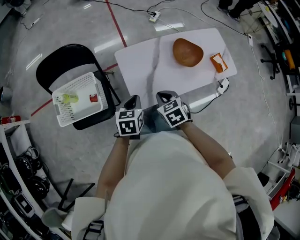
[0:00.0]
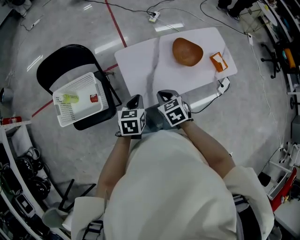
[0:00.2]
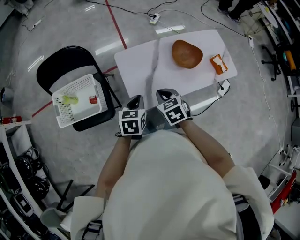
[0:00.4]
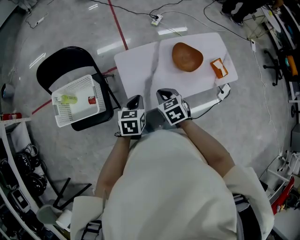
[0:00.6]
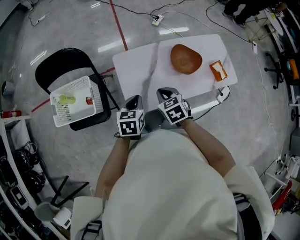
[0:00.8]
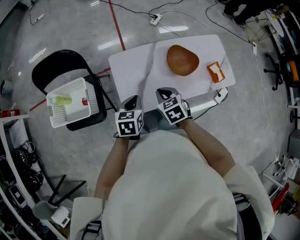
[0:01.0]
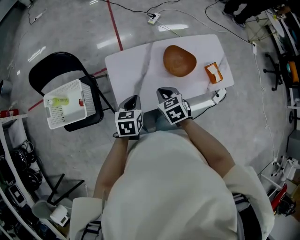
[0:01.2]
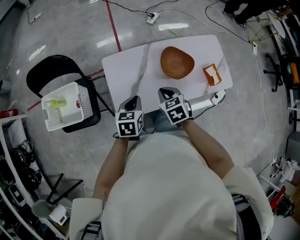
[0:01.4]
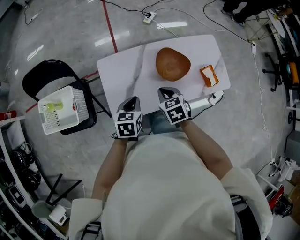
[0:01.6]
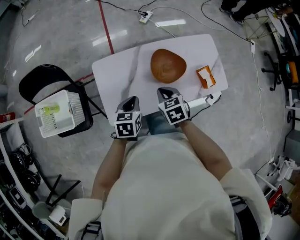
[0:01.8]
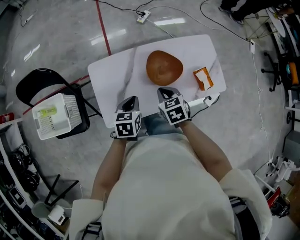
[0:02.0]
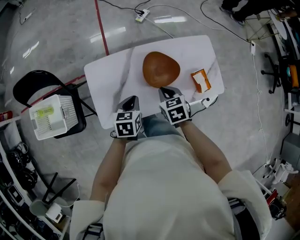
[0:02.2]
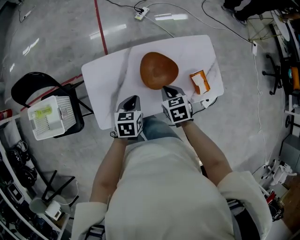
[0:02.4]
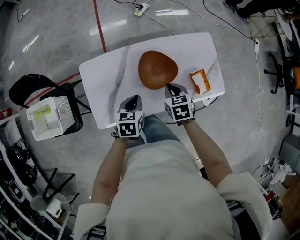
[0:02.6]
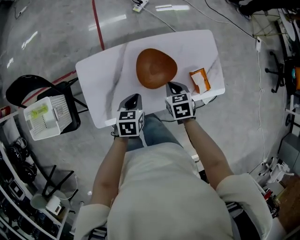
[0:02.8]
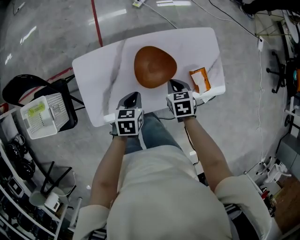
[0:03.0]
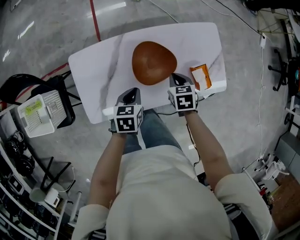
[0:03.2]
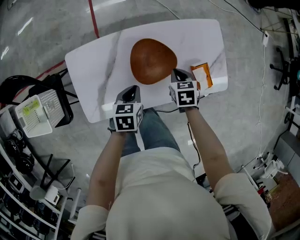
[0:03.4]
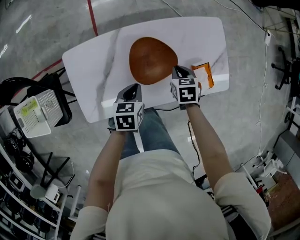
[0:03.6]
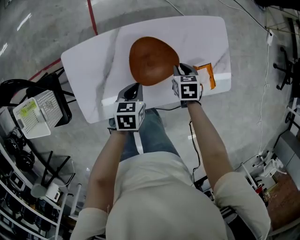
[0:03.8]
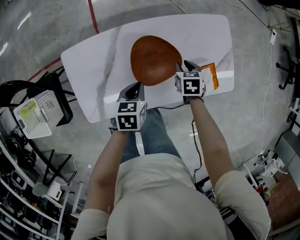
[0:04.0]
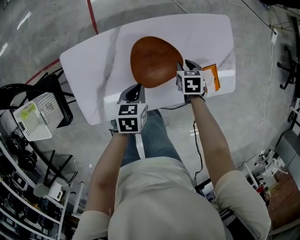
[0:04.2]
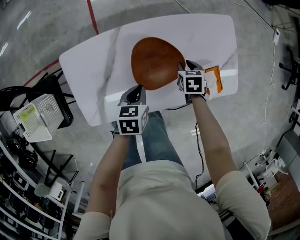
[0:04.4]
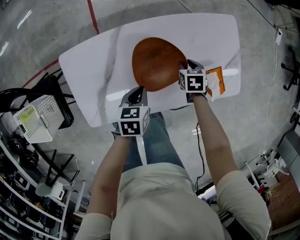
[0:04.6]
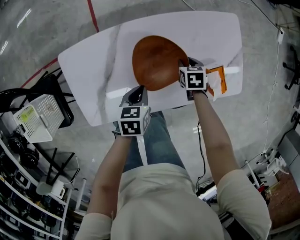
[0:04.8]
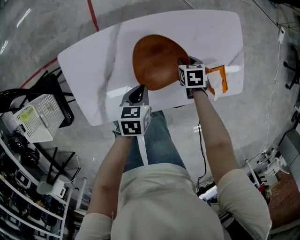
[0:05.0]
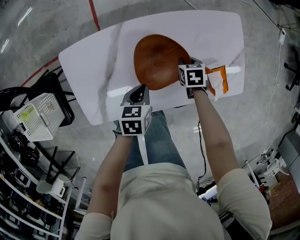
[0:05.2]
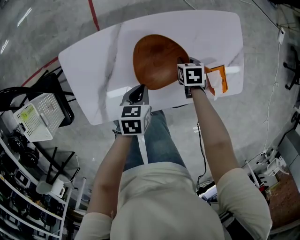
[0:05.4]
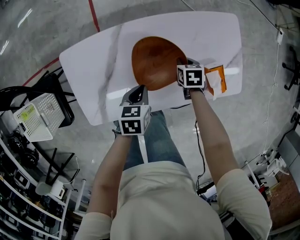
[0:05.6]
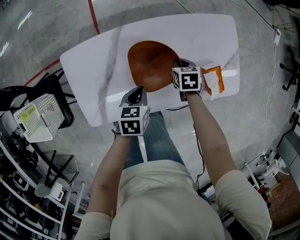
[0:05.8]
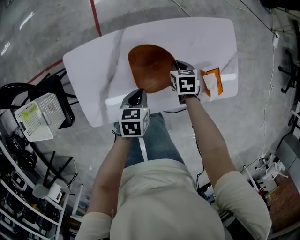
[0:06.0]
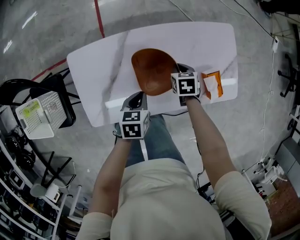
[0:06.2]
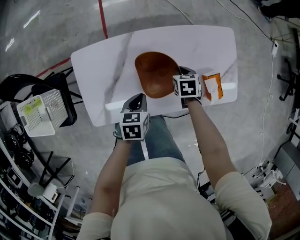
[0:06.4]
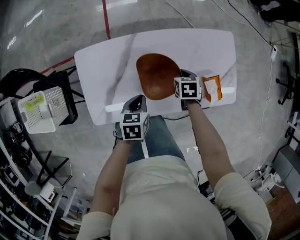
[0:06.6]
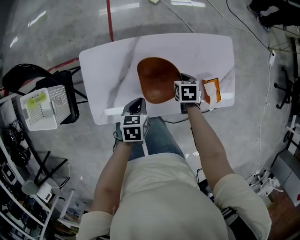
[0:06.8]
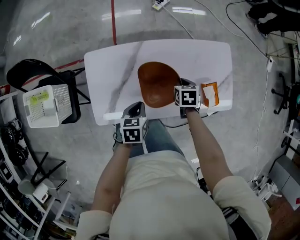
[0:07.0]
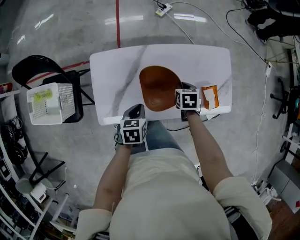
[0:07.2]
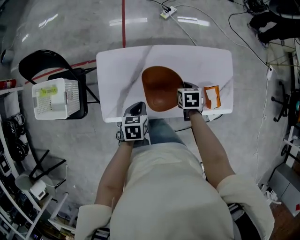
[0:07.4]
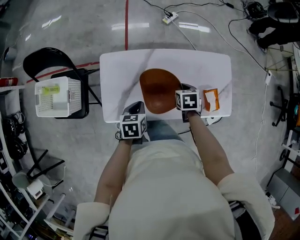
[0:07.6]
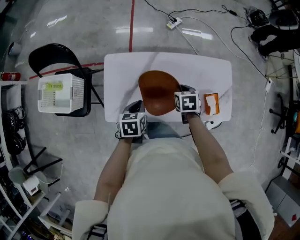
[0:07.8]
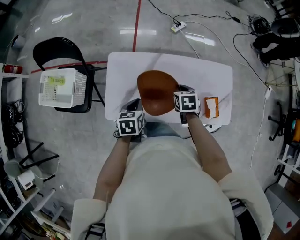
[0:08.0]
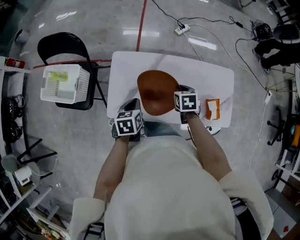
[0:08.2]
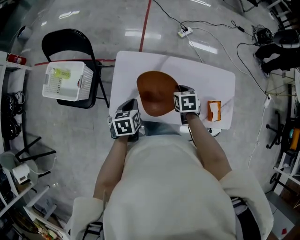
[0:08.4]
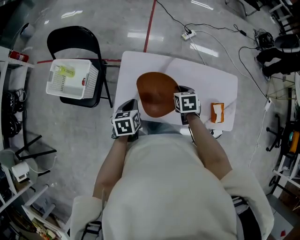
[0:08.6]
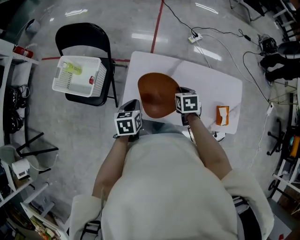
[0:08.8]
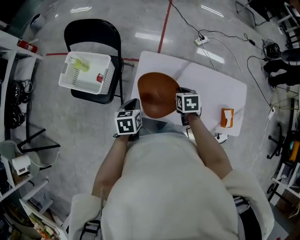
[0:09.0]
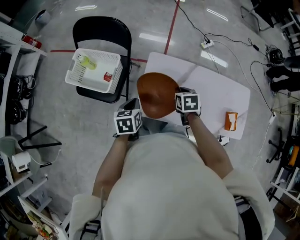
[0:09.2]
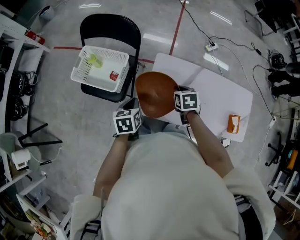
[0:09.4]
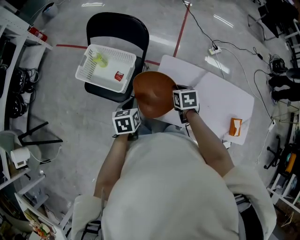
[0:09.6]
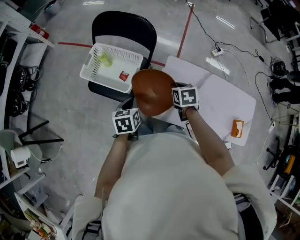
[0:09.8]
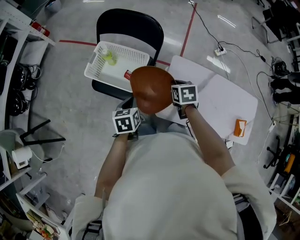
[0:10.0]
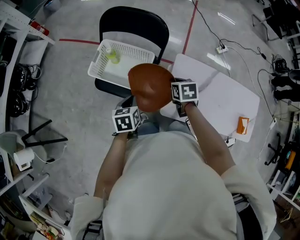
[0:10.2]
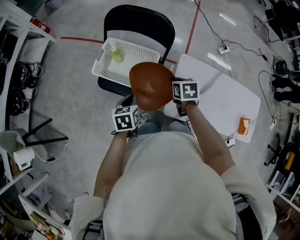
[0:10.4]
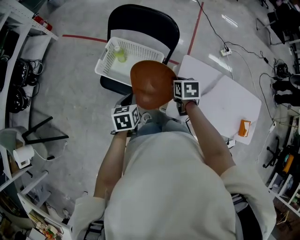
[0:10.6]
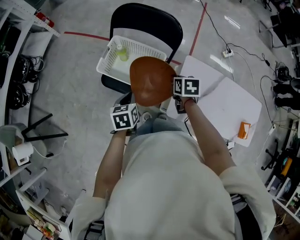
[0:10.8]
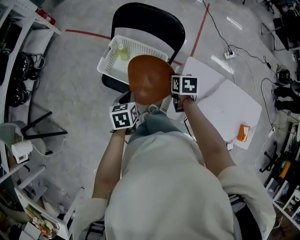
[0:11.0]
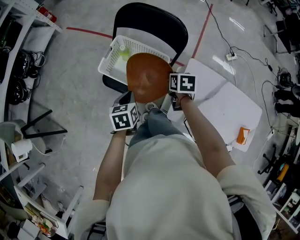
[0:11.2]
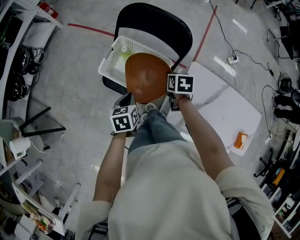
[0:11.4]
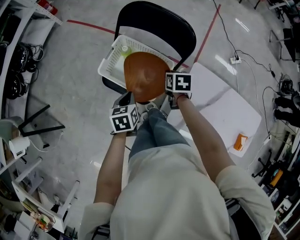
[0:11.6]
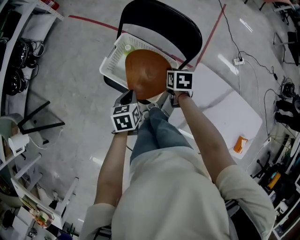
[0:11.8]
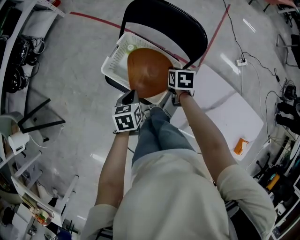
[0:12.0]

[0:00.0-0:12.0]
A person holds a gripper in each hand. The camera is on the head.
0:00.0 to 0:01.6: Both grippers travel together to the right and forward, about 20 cm.
0:01.6 to 0:03.0: Both grippers move to the right, forward and downward, roughly 20 cm.
0:03.0 to 0:04.4: The left gripper moves downward, approximately 10 cm, while the right gripper heads downward and forward, covering approximately 15 cm.
0:04.4 to 0:06.0: The right gripper heads to the left, covering approximately 5 cm.
0:06.0 to 0:07.6: The right gripper shifts some 20 cm upward, backward and to the left. The left gripper goes about 15 cm upward, to the left and backward.
0:07.6 to 0:09.0: Both grippers move to the left, approximately 20 cm.
0:09.0 to 0:10.4: Both grippers travel together to the left, approximately 30 cm.
0:10.4 to 0:12.0: The right gripper moves forward, to the left and downward, some 20 cm; the left gripper heads forward and to the left, covering roughly 10 cm.

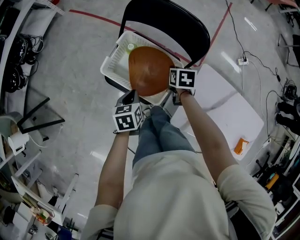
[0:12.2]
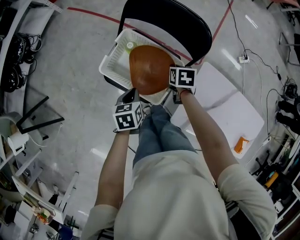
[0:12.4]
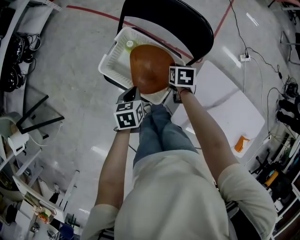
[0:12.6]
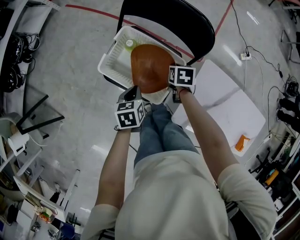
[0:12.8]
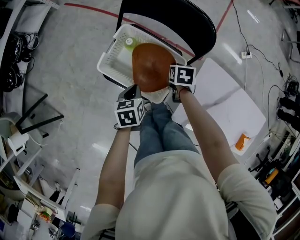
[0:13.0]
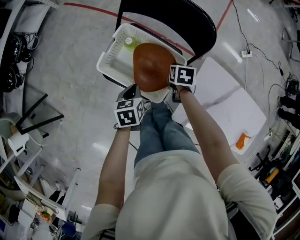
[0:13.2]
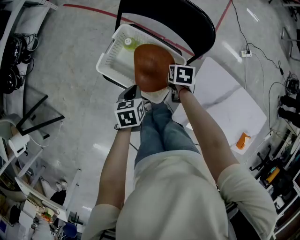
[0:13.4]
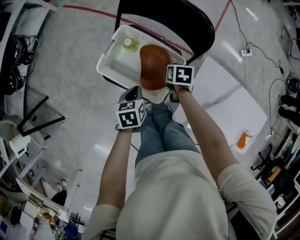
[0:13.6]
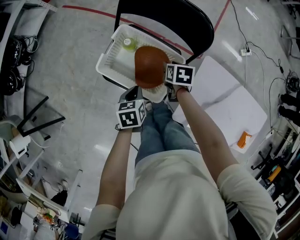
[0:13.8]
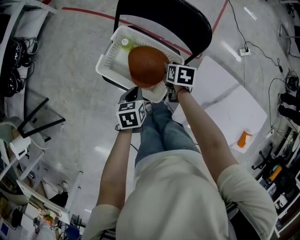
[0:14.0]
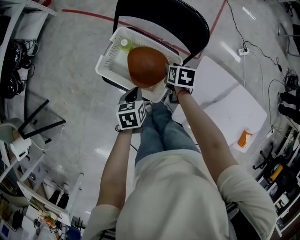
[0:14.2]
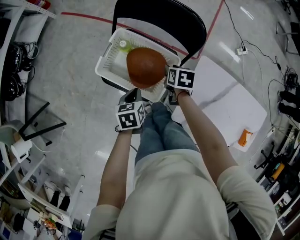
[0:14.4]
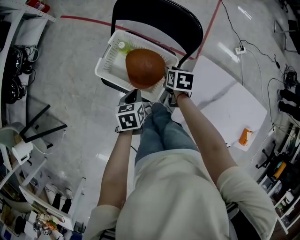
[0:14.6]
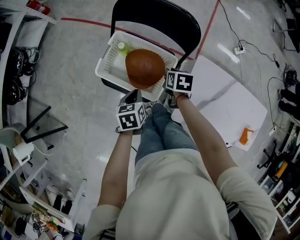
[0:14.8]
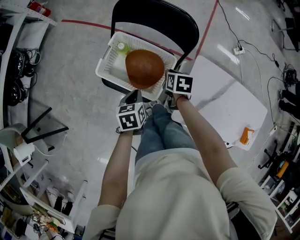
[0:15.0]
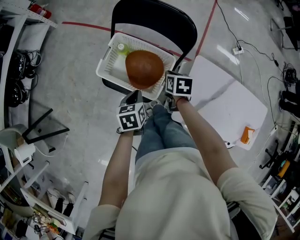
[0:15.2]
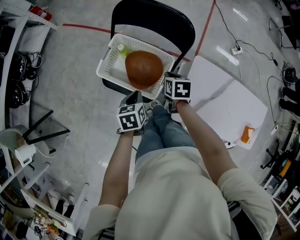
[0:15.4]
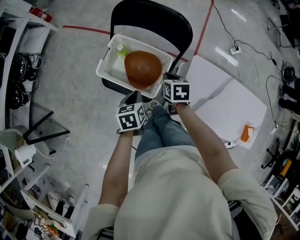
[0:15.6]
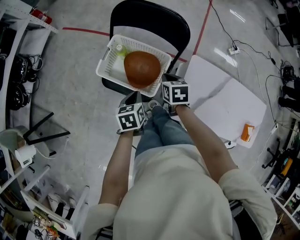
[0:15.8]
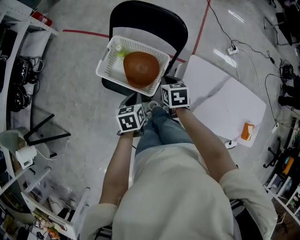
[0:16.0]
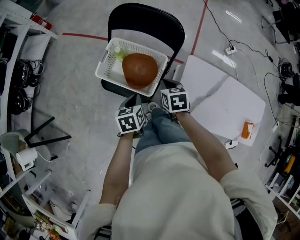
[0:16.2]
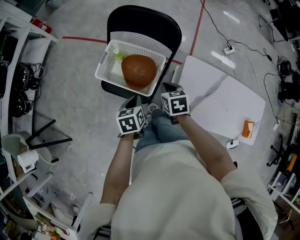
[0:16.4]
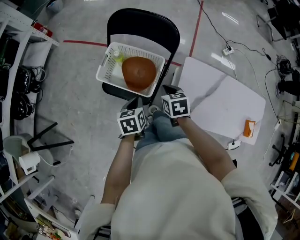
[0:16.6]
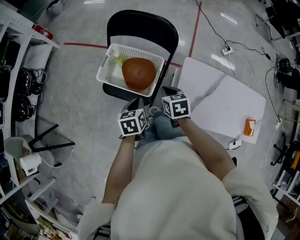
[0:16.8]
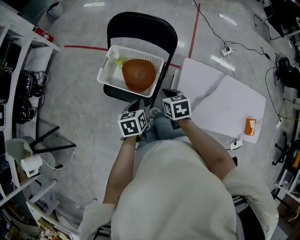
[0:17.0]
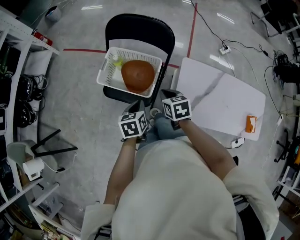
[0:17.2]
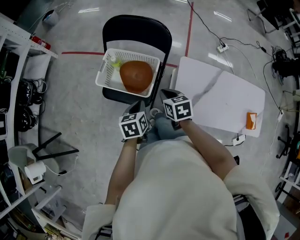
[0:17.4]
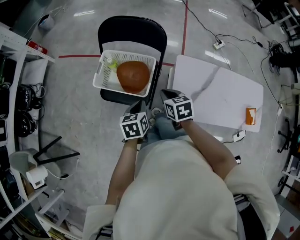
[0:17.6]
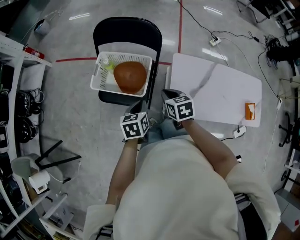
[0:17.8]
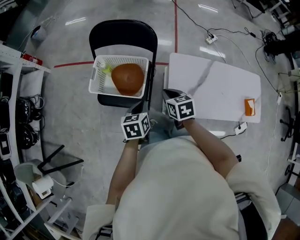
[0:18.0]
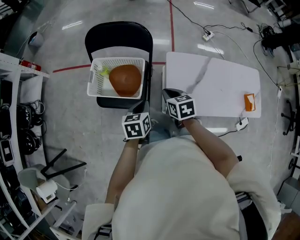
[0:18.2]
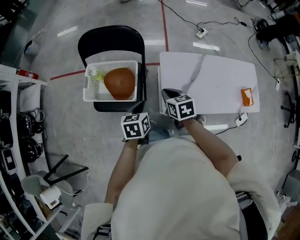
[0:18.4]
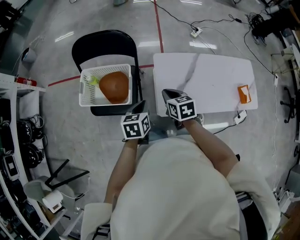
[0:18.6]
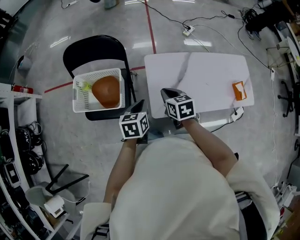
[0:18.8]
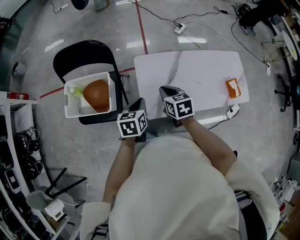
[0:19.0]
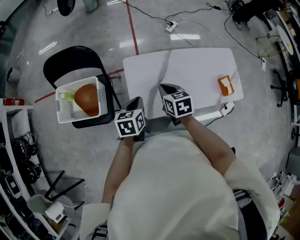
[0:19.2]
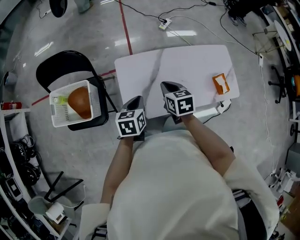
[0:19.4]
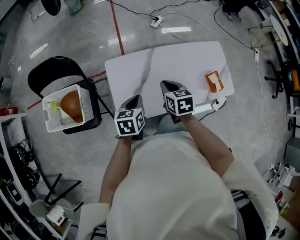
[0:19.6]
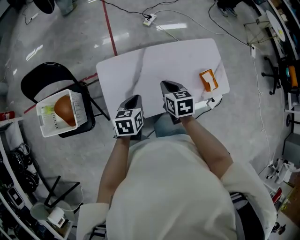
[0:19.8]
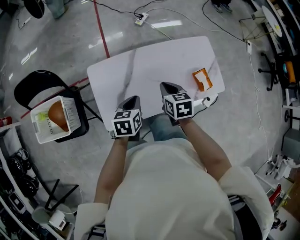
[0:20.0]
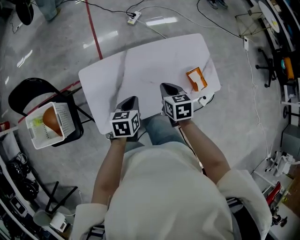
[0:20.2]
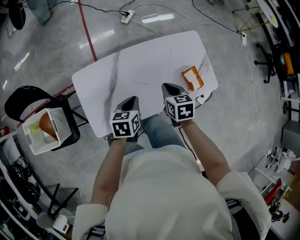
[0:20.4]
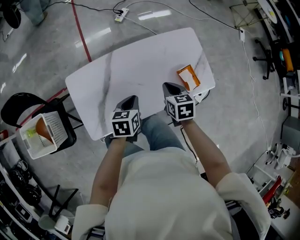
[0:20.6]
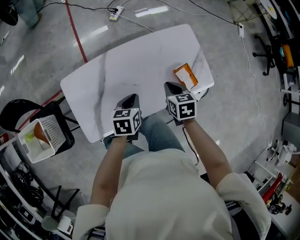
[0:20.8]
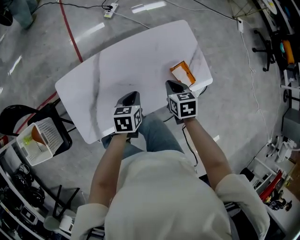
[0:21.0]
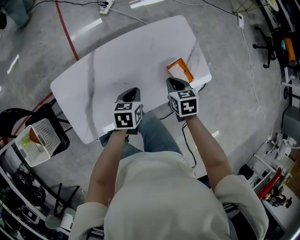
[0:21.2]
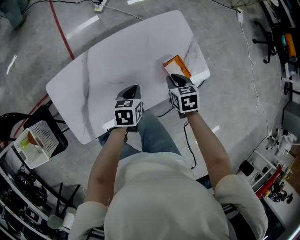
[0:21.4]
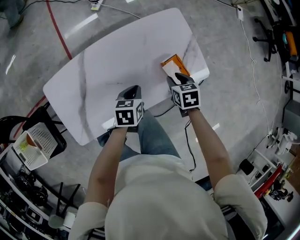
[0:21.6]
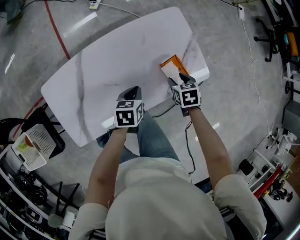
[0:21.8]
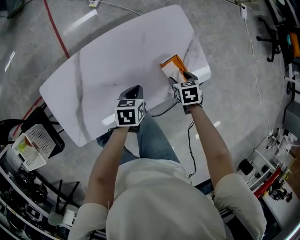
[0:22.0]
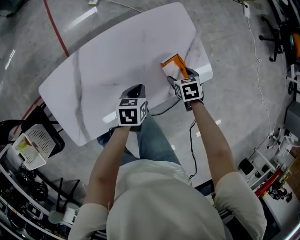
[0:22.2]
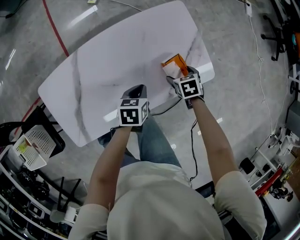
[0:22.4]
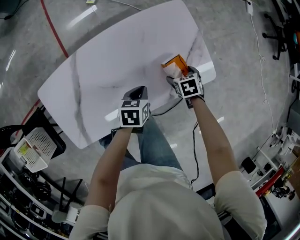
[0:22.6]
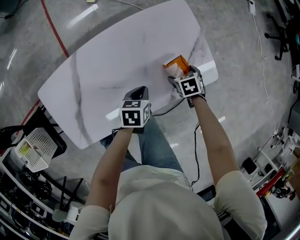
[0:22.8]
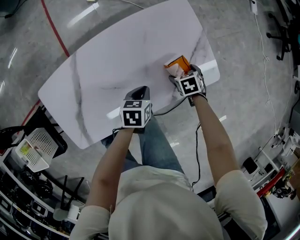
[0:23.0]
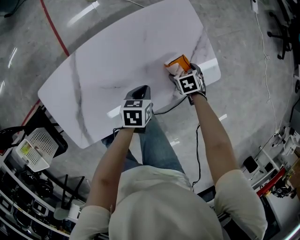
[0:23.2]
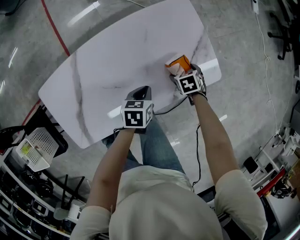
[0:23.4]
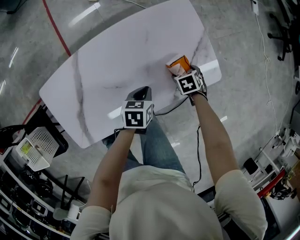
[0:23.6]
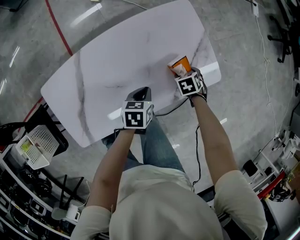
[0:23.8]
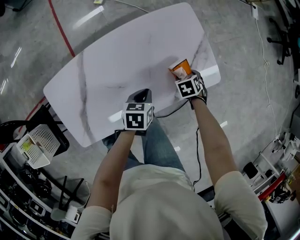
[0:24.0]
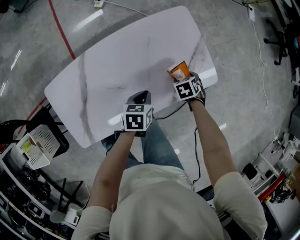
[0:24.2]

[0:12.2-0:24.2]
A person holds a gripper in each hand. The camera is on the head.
0:12.2 to 0:13.8: The grippers stay close to where they were, moving slightly.
0:13.8 to 0:15.2: The right gripper travels upward and backward by about 10 cm, and closes up. Meanwhile the left gripper changes place by roughly 5 cm.
0:15.2 to 0:16.6: The left gripper travels backward by roughly 5 cm; the right gripper moves backward and upward, some 15 cm.
0:16.6 to 0:18.2: The left gripper moves to the right, some 10 cm, while the right gripper heads to the right and backward, covering approximately 10 cm.
0:18.2 to 0:19.8: The grippers both shift to the right by roughly 40 cm. The right gripper swivels about 20 degrees.
0:19.8 to 0:21.2: The right gripper travels to the right and downward by about 30 cm. The left gripper shifts about 30 cm to the right, forward and downward.
0:21.2 to 0:22.6: The left gripper moves downward, approximately 10 cm. Meanwhile the right gripper moves downward, approximately 20 cm, and opens.
0:22.6 to 0:24.2: The grippers move only a little.
